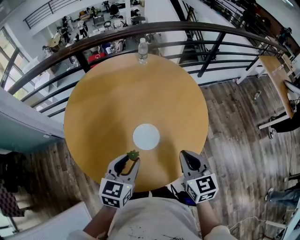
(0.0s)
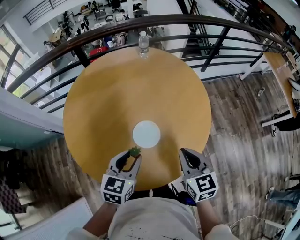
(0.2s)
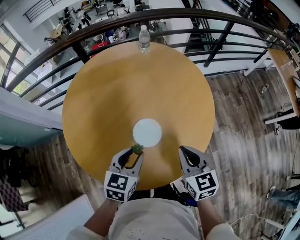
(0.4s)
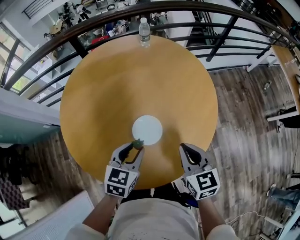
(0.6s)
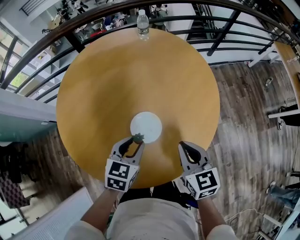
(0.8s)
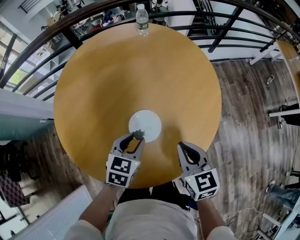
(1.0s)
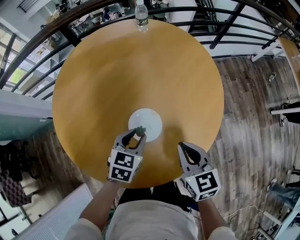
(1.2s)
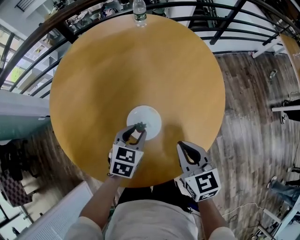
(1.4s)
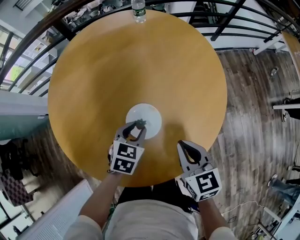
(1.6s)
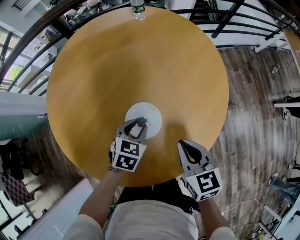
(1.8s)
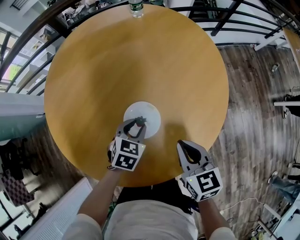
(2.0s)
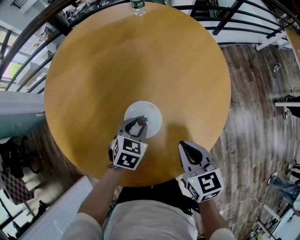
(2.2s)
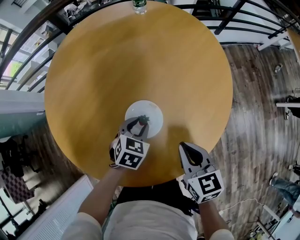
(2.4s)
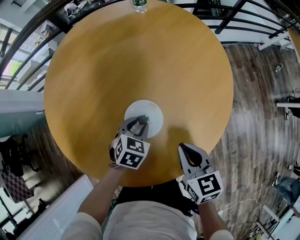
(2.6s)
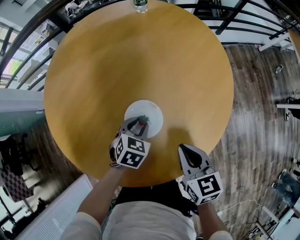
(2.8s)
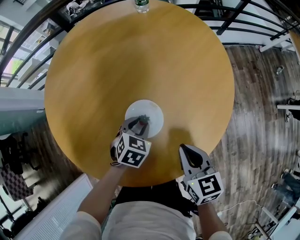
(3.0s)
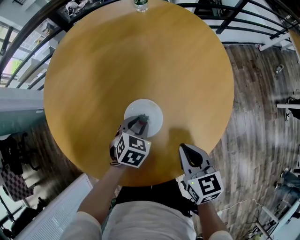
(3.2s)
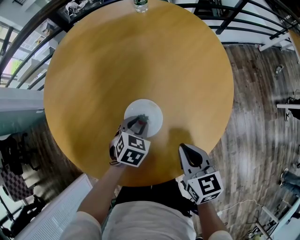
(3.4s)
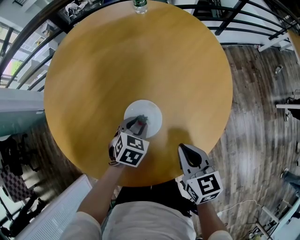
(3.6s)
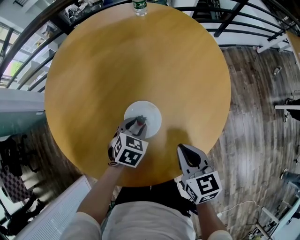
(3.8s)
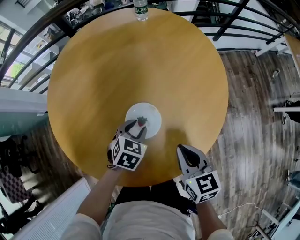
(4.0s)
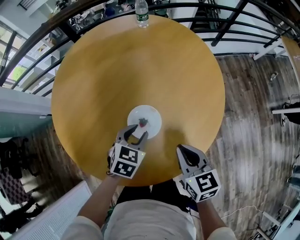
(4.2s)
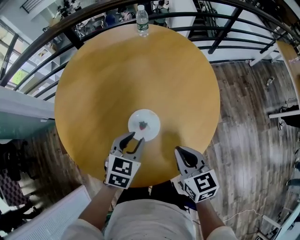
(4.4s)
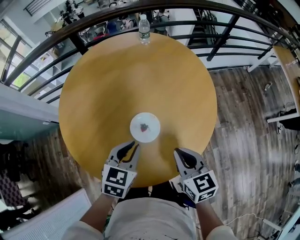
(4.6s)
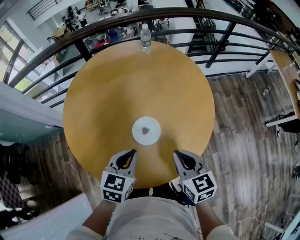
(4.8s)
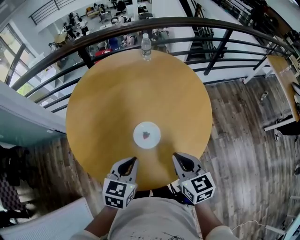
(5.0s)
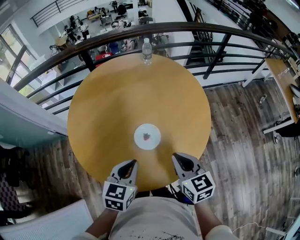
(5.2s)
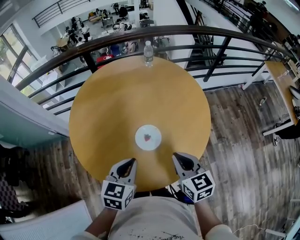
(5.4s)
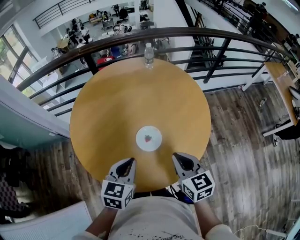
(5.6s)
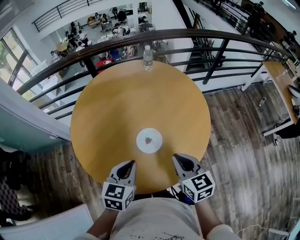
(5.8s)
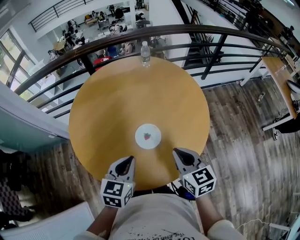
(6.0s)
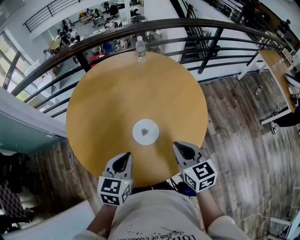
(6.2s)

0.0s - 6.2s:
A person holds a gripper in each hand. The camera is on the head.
0.0s - 1.6s: The right gripper moves downward and forward, some 15 cm; the left gripper travels downward and forward by roughly 25 cm, and rotates roughly 20 degrees.
1.6s - 3.2s: The left gripper goes roughly 5 cm downward.
3.2s - 4.6s: The left gripper travels upward and backward by approximately 20 cm, and turns by approximately 20 degrees. Meanwhile the right gripper heads upward, covering about 10 cm.
4.6s - 6.2s: The left gripper heads upward and backward, covering about 10 cm. Meanwhile the right gripper heads upward, covering roughly 5 cm.

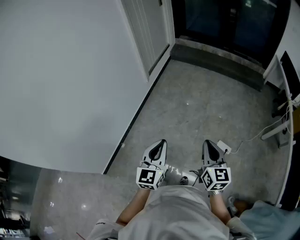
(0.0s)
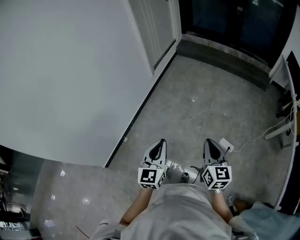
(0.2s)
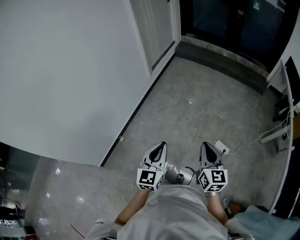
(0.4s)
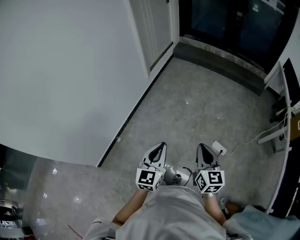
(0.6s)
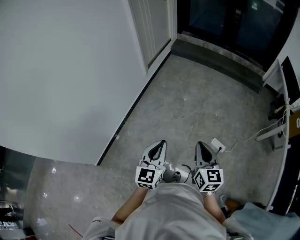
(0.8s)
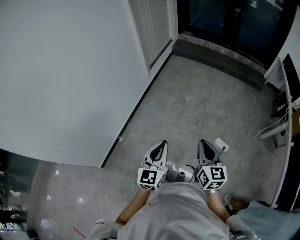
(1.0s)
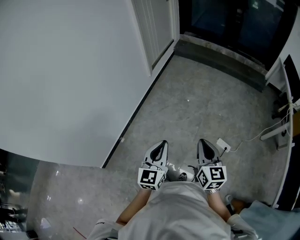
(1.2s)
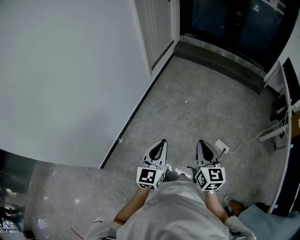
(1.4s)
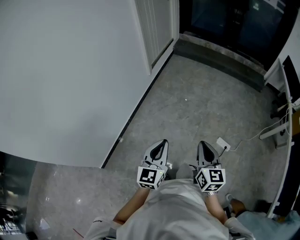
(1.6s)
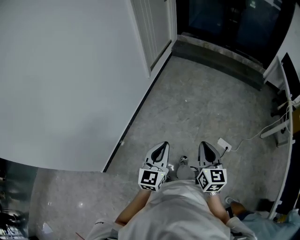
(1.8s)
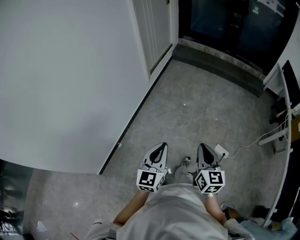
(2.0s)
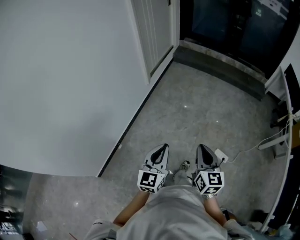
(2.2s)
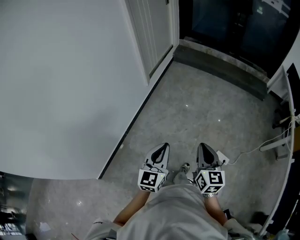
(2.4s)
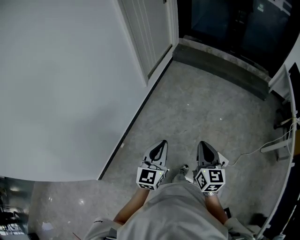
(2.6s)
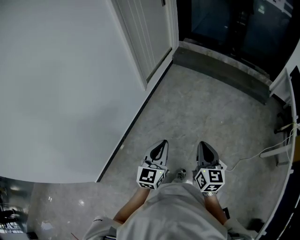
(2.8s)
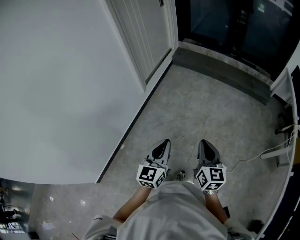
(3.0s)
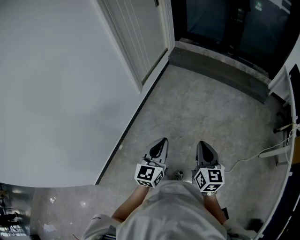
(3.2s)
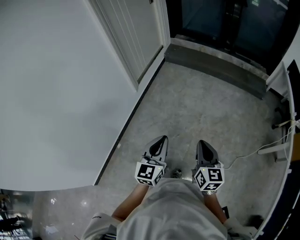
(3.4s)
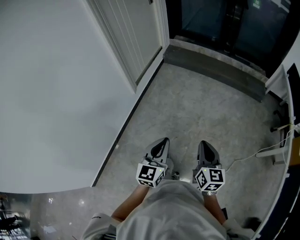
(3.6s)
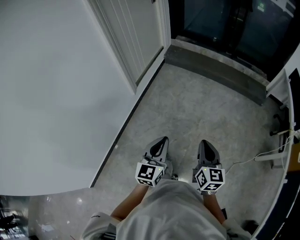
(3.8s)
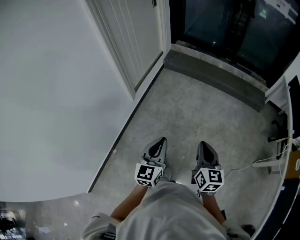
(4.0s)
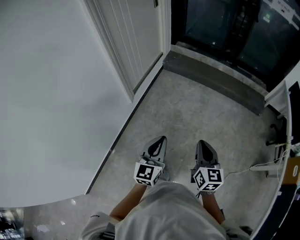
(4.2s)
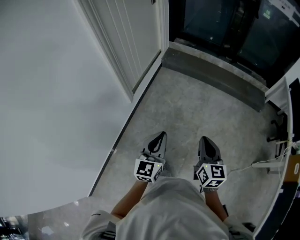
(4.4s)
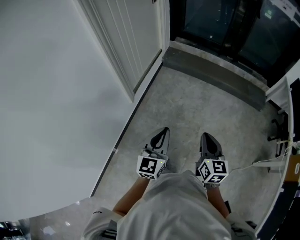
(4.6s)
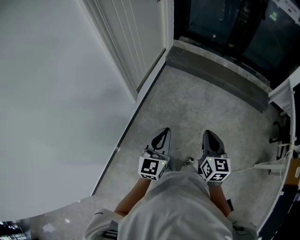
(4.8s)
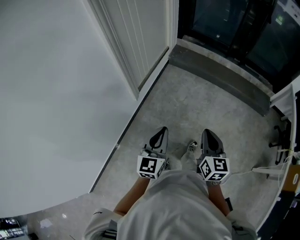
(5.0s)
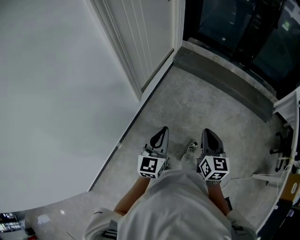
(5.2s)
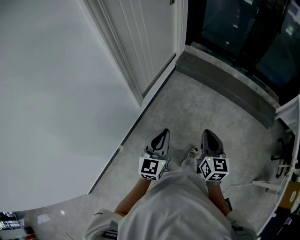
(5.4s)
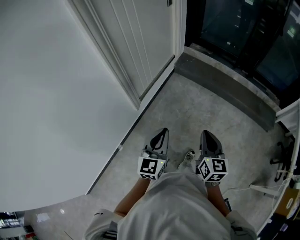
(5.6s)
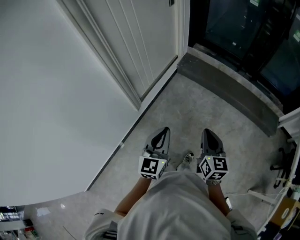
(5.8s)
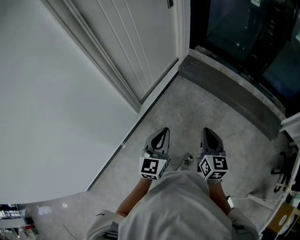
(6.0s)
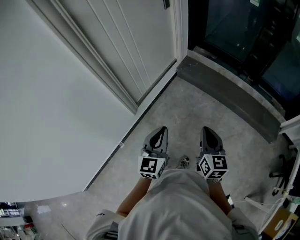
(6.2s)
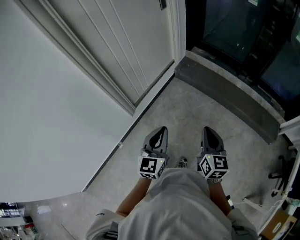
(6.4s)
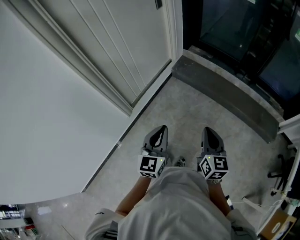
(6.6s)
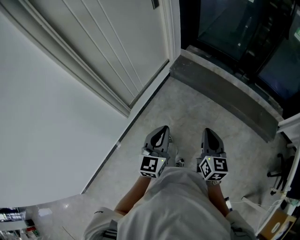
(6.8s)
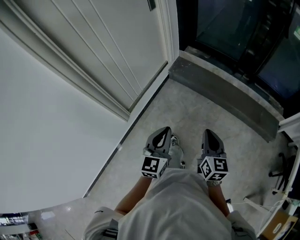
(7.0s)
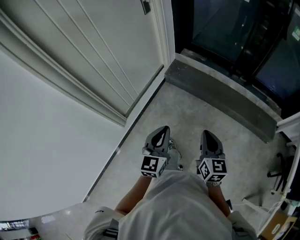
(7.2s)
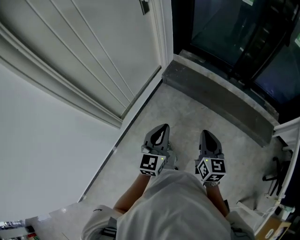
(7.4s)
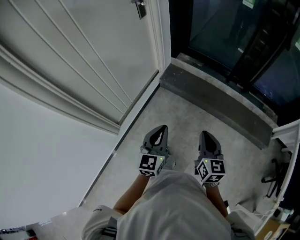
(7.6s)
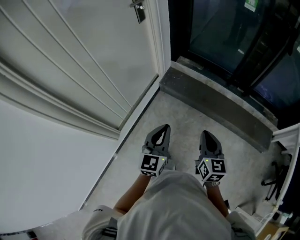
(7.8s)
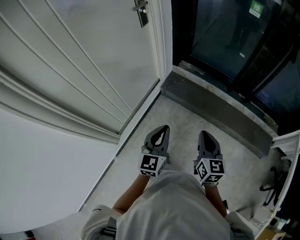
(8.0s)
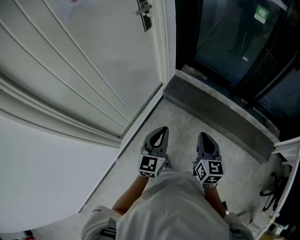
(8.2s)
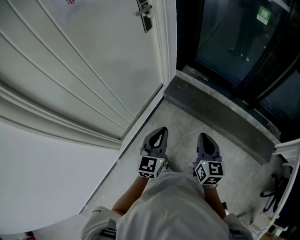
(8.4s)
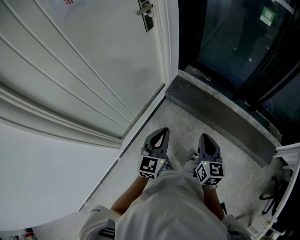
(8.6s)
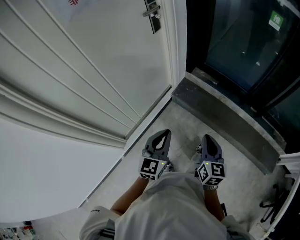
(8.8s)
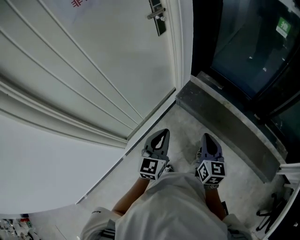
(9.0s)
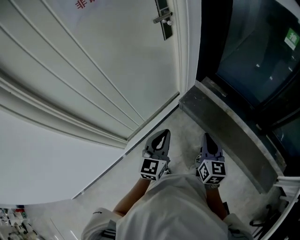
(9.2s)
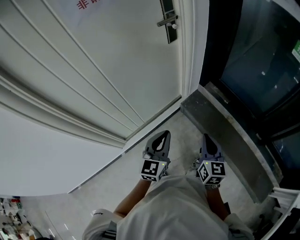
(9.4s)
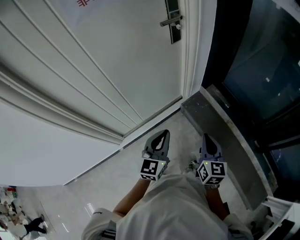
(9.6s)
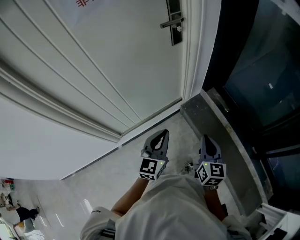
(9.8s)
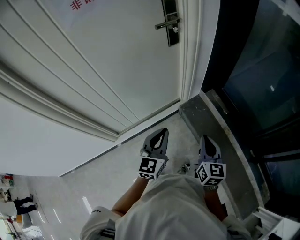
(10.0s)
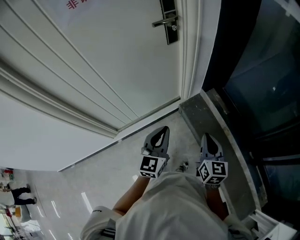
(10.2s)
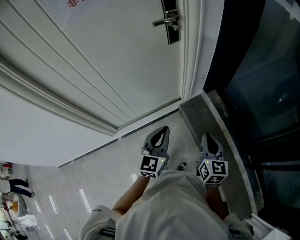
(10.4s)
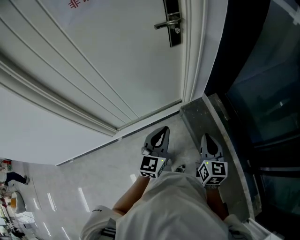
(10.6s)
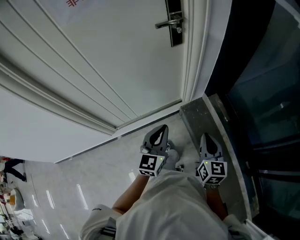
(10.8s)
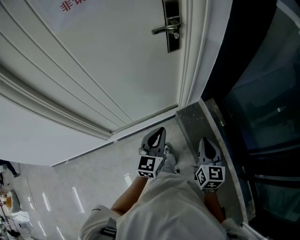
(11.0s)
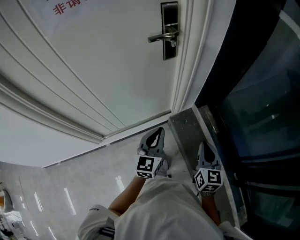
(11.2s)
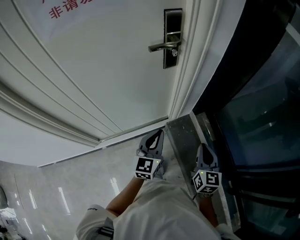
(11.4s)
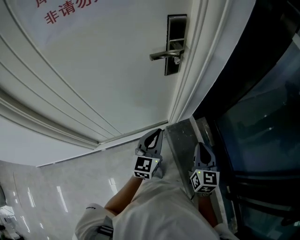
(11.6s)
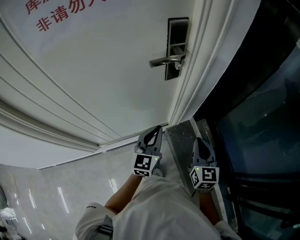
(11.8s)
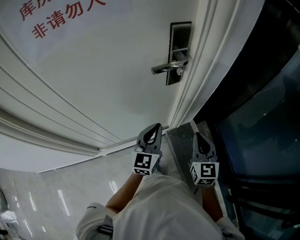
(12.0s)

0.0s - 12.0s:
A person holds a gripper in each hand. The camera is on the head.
0.0s - 1.6s: The two grippers go about 5 cm to the left.
1.6s - 3.0s: The two grippers go some 30 cm forward and to the right.
3.0s - 4.4s: Both grippers travel together forward, about 25 cm.
4.4s - 6.0s: Both grippers move forward, some 30 cm.
6.0s - 7.6s: Both grippers travel together forward and to the right, roughly 30 cm.
7.6s - 9.0s: The two grippers go about 20 cm forward.
9.0s - 10.4s: Both grippers travel together forward and to the right, about 20 cm. The right gripper changes its angle by roughly 20 degrees; the left gripper turns by some 20 degrees.
10.4s - 12.0s: The grippers both shift forward by roughly 30 cm. The right gripper rotates roughly 20 degrees.

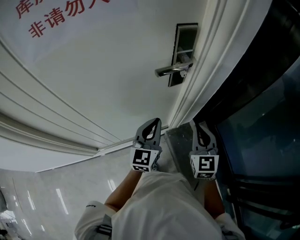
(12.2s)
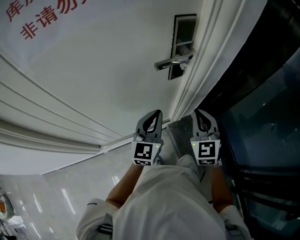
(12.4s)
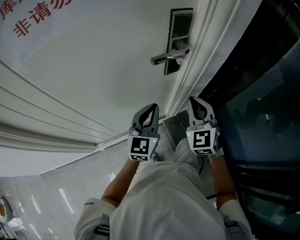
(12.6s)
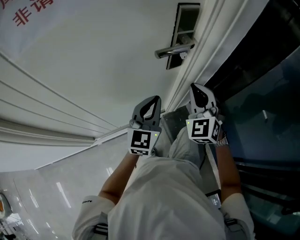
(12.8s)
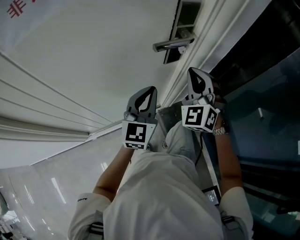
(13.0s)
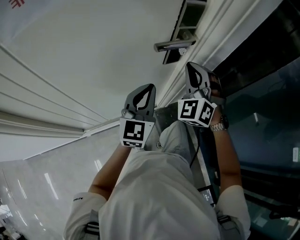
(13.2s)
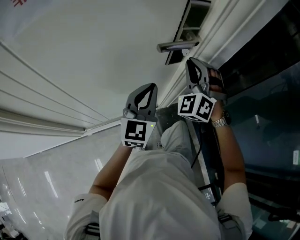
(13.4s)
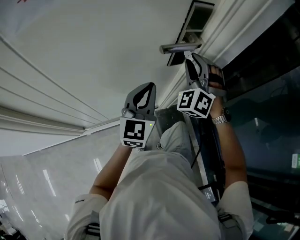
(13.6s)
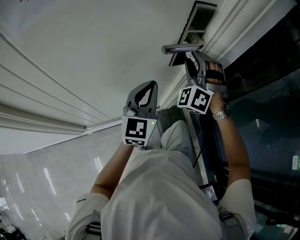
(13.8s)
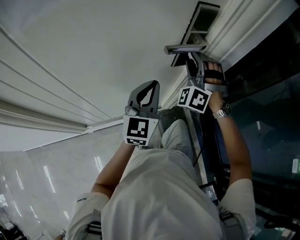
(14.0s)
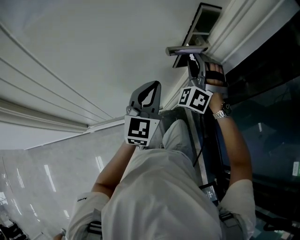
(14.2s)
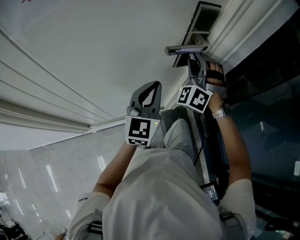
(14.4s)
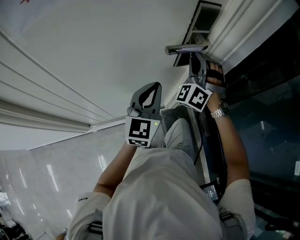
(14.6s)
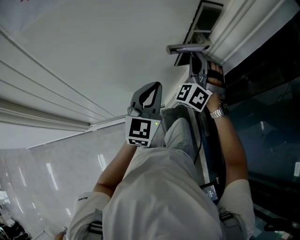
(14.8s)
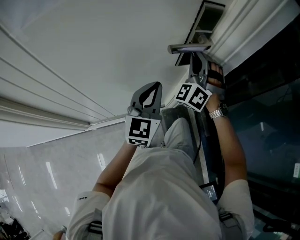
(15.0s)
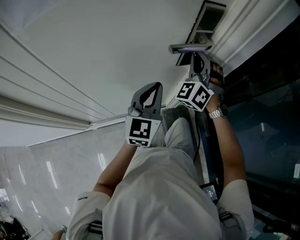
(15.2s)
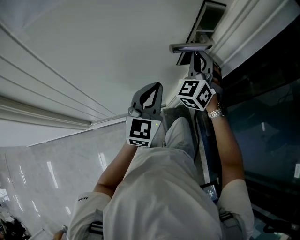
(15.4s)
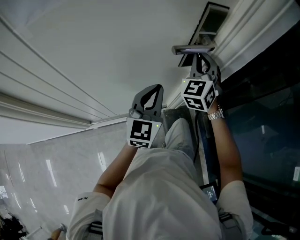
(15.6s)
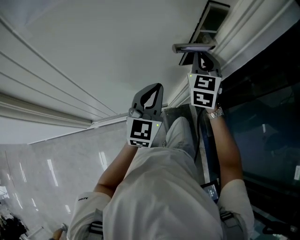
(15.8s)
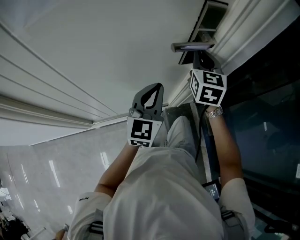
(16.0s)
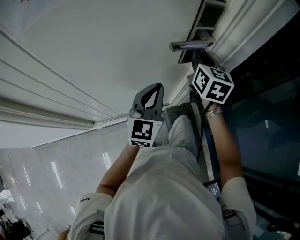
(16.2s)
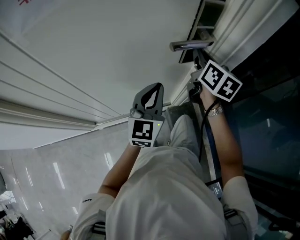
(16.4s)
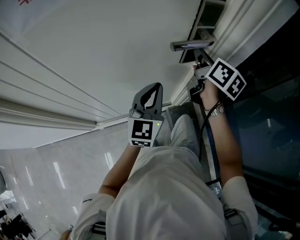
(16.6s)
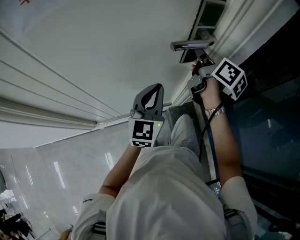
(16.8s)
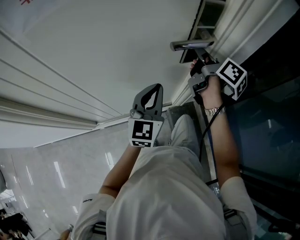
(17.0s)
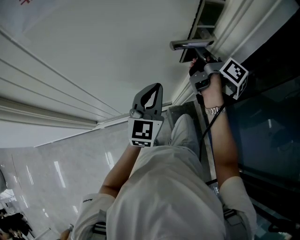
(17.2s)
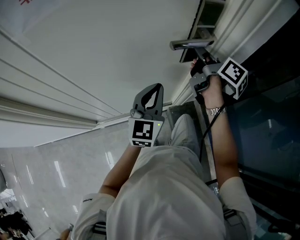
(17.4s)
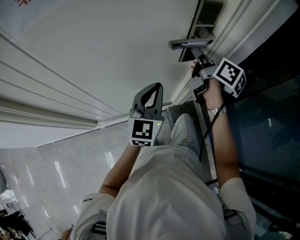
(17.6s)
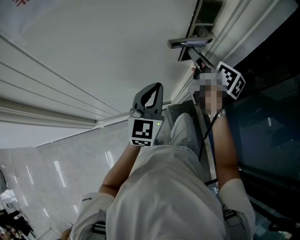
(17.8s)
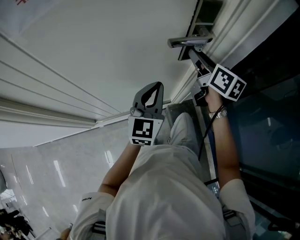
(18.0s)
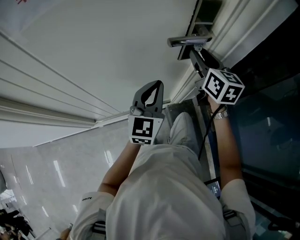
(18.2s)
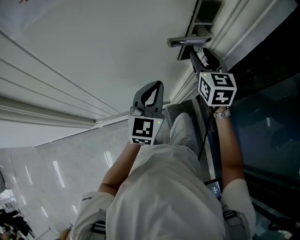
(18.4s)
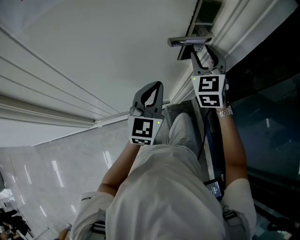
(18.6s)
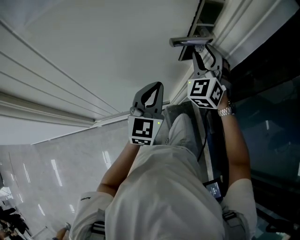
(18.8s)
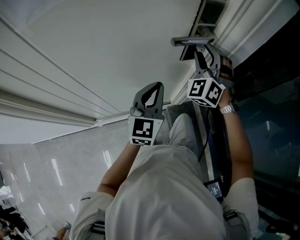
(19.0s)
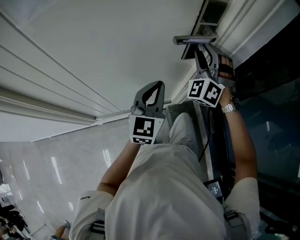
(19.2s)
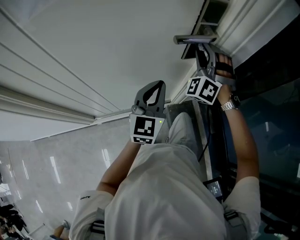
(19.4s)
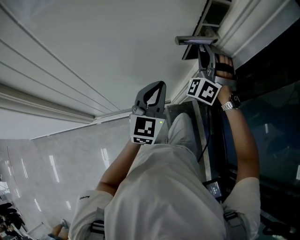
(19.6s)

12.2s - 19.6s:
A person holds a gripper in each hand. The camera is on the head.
12.2s - 13.6s: The left gripper ends up some 5 cm from where it was, while the right gripper heads forward, to the left and upward, covering about 20 cm, rotates around the line of its fingers by some 60 degrees, counterclockwise from behind, and opens its fingers.
13.6s - 15.2s: The right gripper closes its fingers.
15.2s - 16.6s: The right gripper rotates around the line of its fingers by about 100 degrees, clockwise from behind.
16.6s - 18.2s: The right gripper changes its angle by roughly 30 degrees, and opens its fingers.
18.2s - 19.6s: The right gripper rolls counterclockwise, seen from behind, by about 90 degrees.
